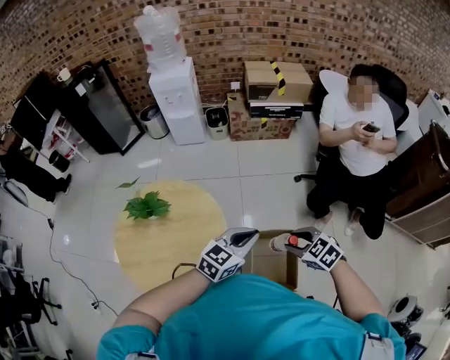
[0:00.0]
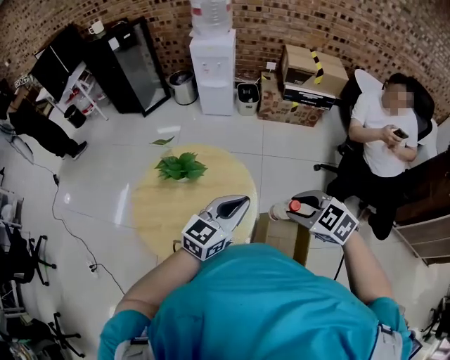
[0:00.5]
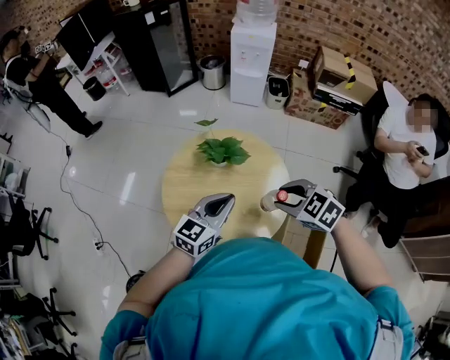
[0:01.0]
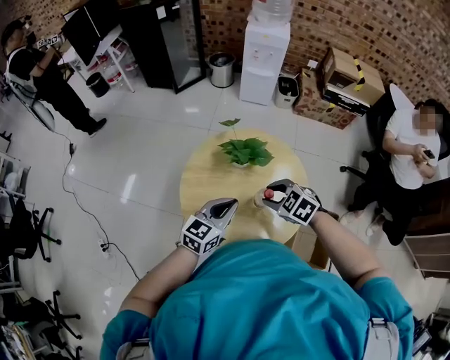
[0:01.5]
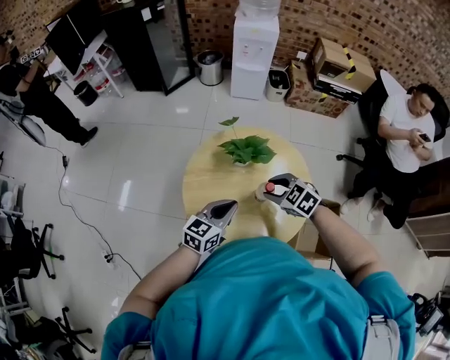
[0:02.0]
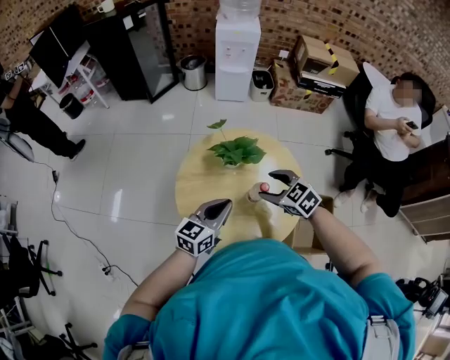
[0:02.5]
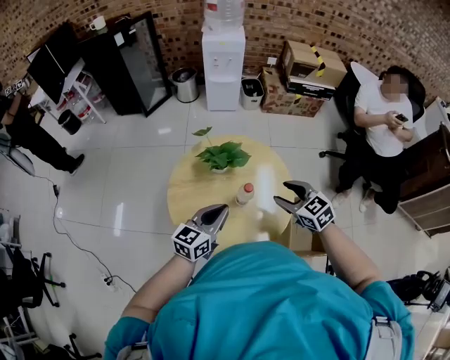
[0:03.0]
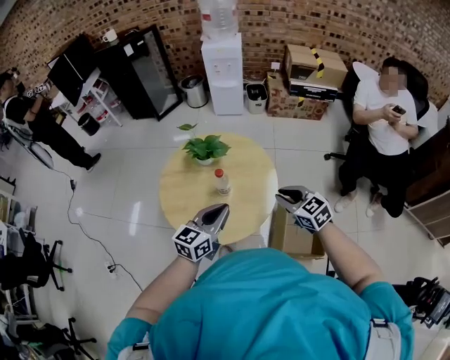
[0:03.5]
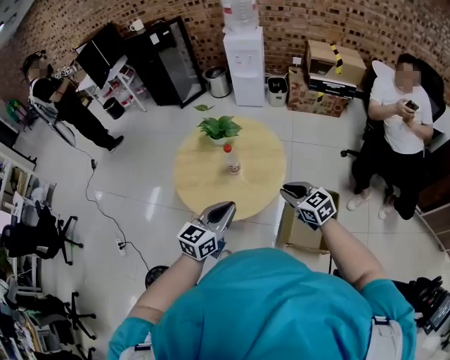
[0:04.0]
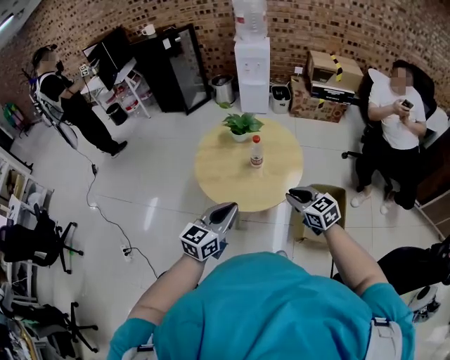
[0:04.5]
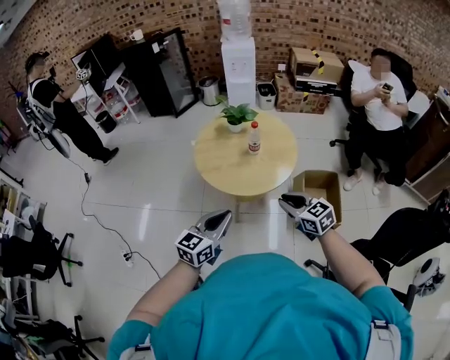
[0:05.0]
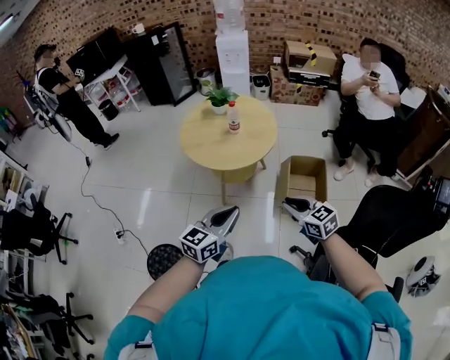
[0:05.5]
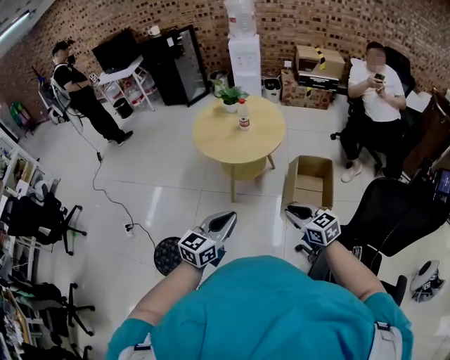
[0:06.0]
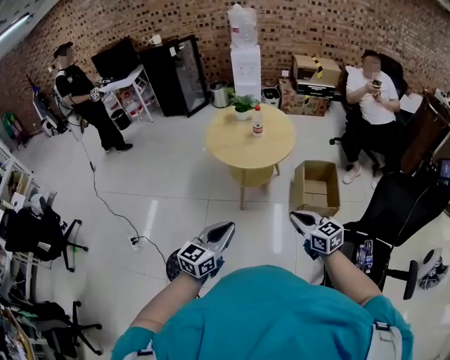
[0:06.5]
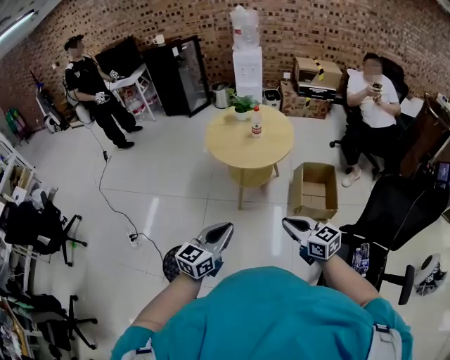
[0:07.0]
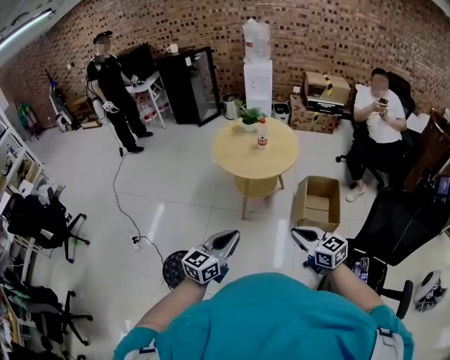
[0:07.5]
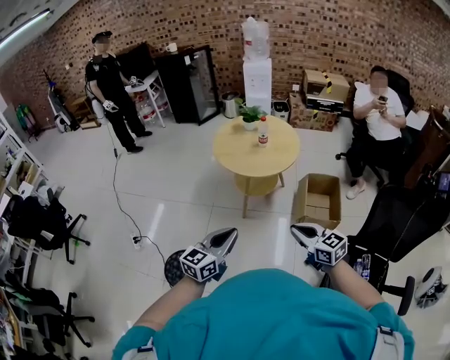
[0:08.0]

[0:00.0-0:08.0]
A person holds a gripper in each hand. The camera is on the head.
0:00.0 to 0:02.0: Both grippers are carried to the left, about 60 cm. The left gripper swivels roughly 20 degrees.
0:02.0 to 0:04.0: The right gripper heads to the right and backward, covering about 40 cm, rotates some 30 degrees, and closes. Meanwhile the left gripper goes about 40 cm backward and to the right.
0:04.0 to 0:06.0: The two grippers travel together, backward, about 60 cm.
0:06.0 to 0:08.0: The right gripper is displaced to the left, backward and upward by some 15 cm; the left gripper moves to the left and backward, some 15 cm.

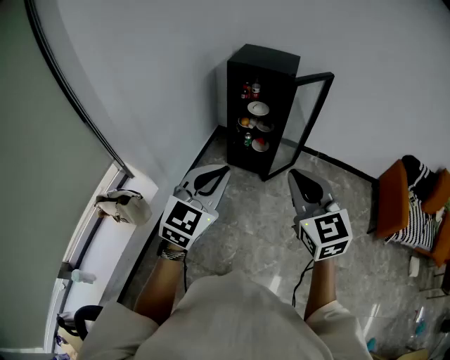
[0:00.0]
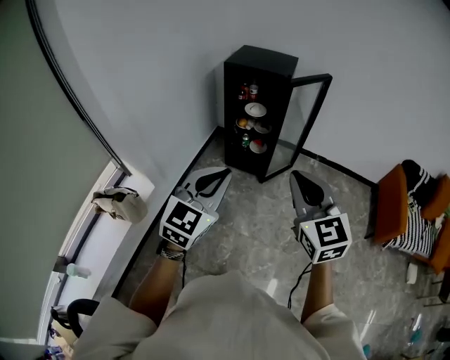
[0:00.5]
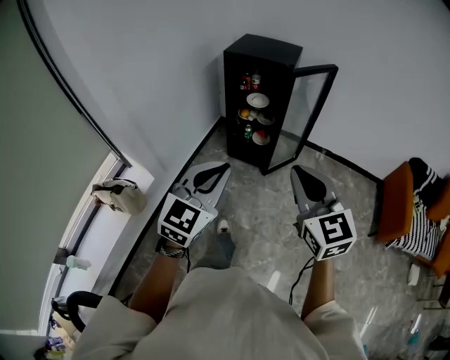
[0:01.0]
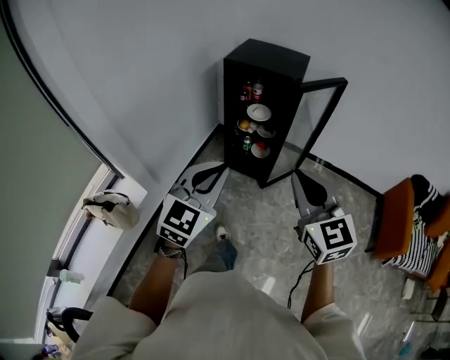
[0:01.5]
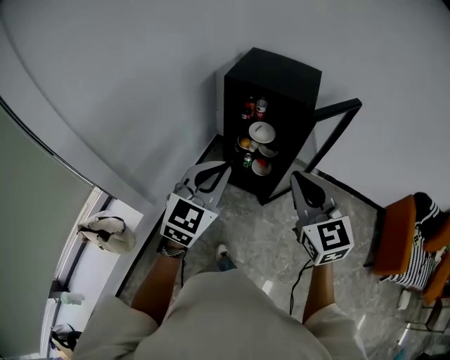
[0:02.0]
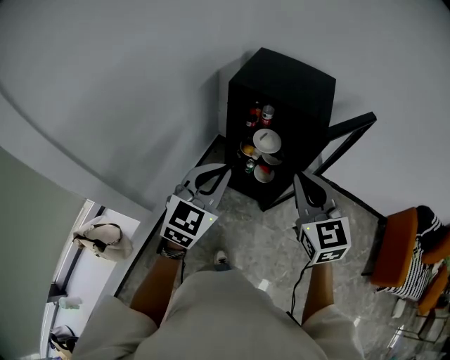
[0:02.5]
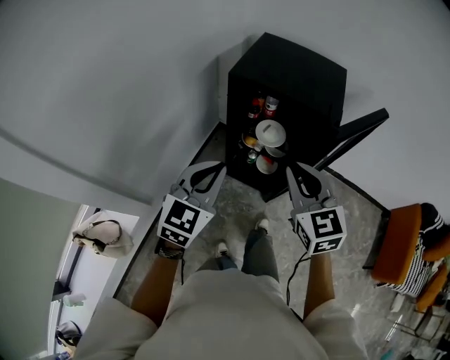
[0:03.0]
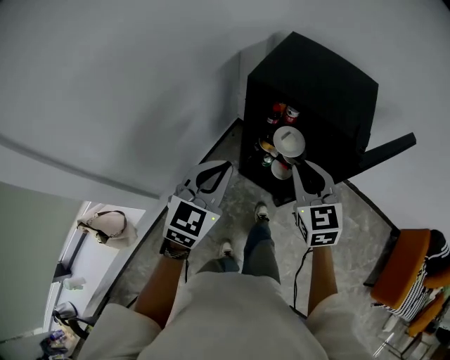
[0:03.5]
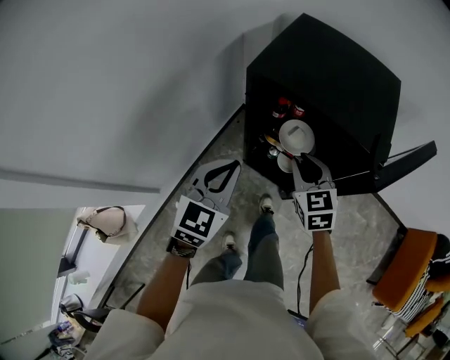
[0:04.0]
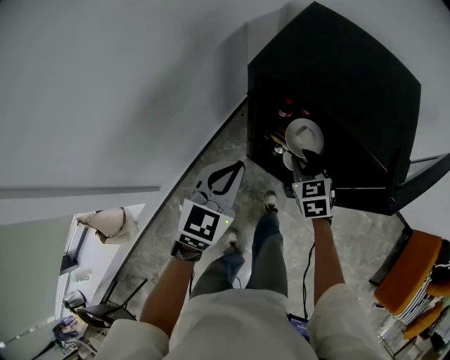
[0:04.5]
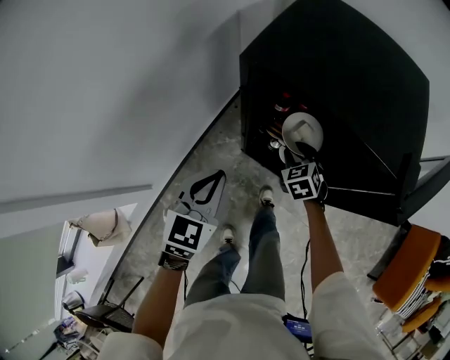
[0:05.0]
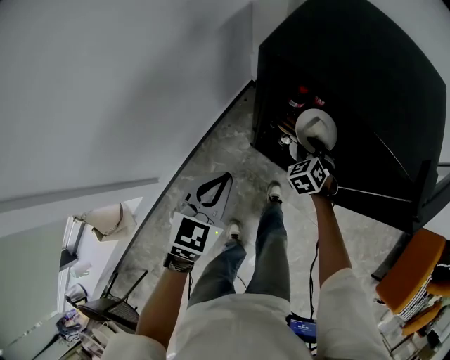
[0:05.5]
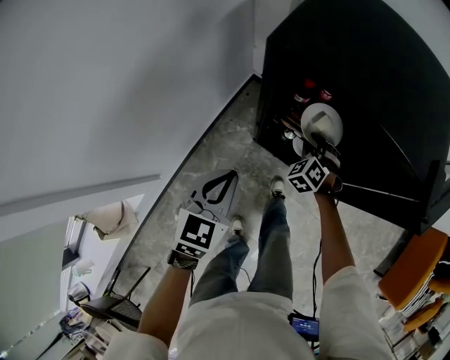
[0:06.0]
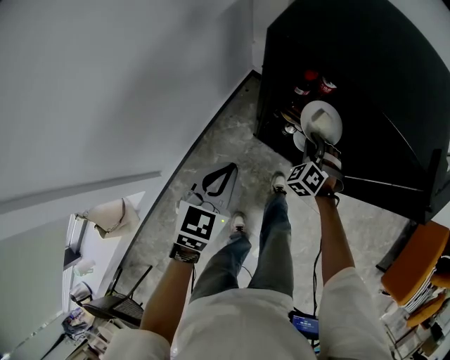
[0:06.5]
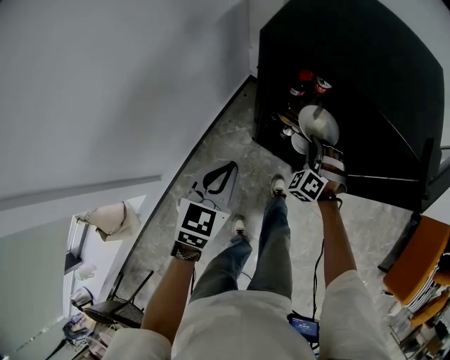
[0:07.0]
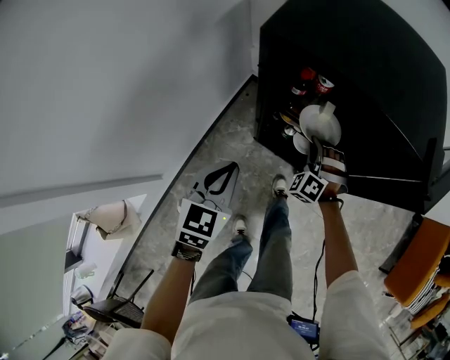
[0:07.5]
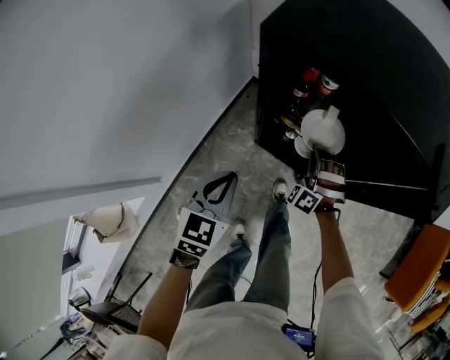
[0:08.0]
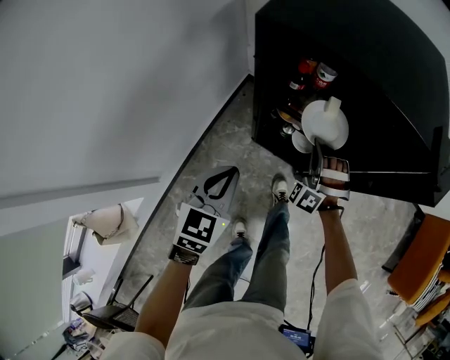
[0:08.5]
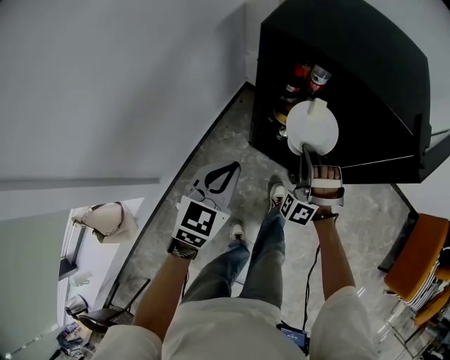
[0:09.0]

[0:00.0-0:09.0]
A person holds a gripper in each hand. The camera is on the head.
0:00.0 to 0:02.0: The two grippers go about 30 cm forward.
0:02.0 to 0:04.5: Both grippers travel together forward and downward, approximately 40 cm. The left gripper changes its angle by approximately 20 degrees; the right gripper rotates about 30 degrees, and opens up.
0:04.5 to 0:07.0: The grippers both shift downward by roughly 10 cm. The right gripper rotates around the line of its fingers by some 50 degrees, counterclockwise from behind, and closes.
0:07.0 to 0:09.0: The right gripper goes some 10 cm upward and backward, and rotates approximately 30 degrees.

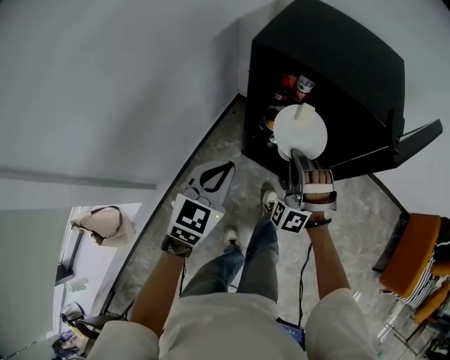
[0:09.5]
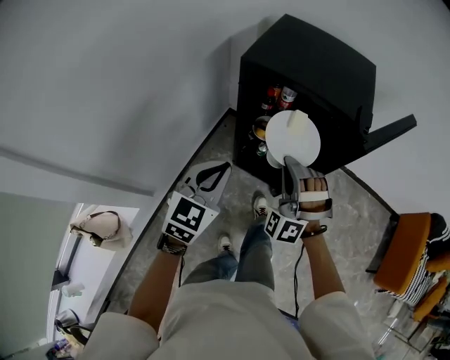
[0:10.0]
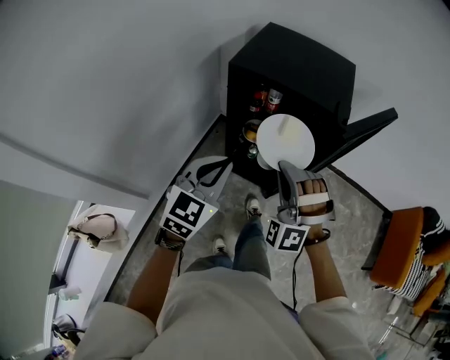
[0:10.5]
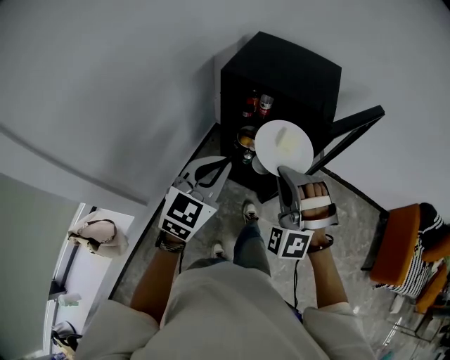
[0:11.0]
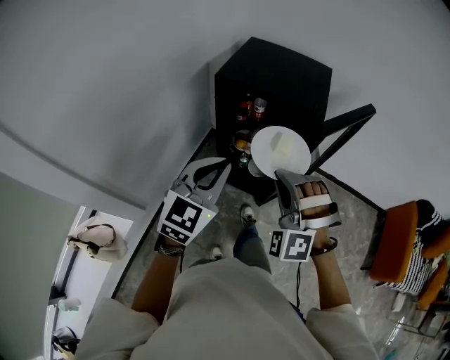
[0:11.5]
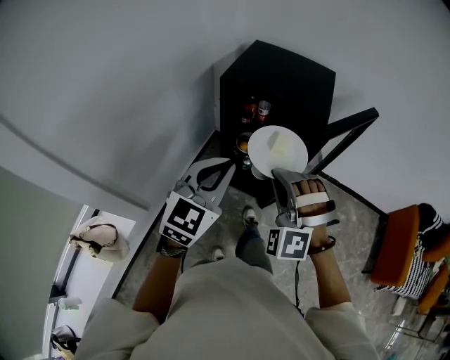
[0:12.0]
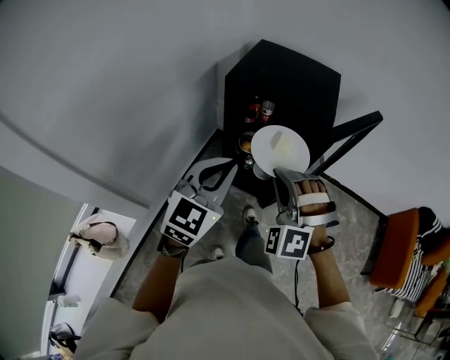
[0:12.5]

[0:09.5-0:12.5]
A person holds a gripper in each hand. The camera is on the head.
0:09.5 to 0:11.0: The right gripper is displaced upward and backward by about 25 cm. Meanwhile the left gripper shifts some 20 cm upward, to the right and backward.
0:11.0 to 0:12.5: There are only small adjustments of the grippers.

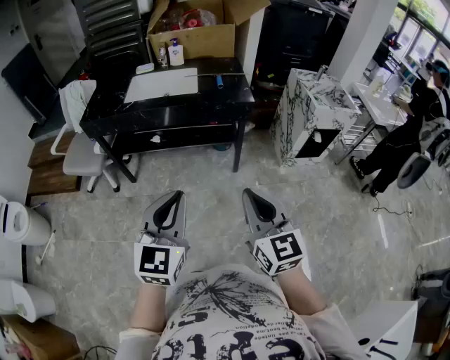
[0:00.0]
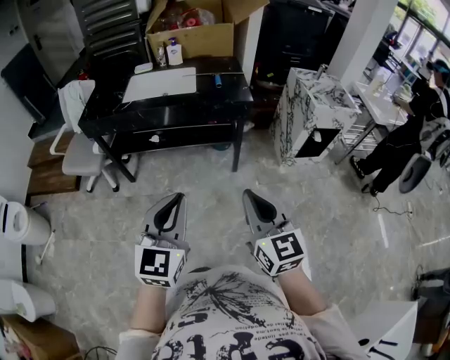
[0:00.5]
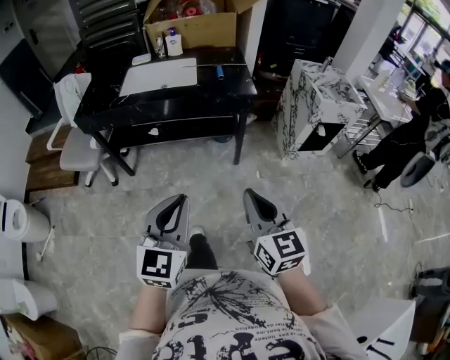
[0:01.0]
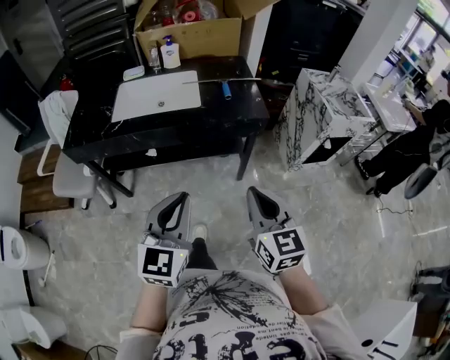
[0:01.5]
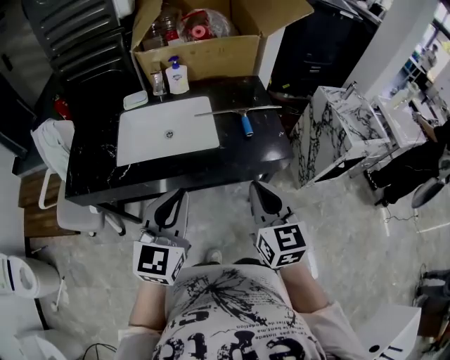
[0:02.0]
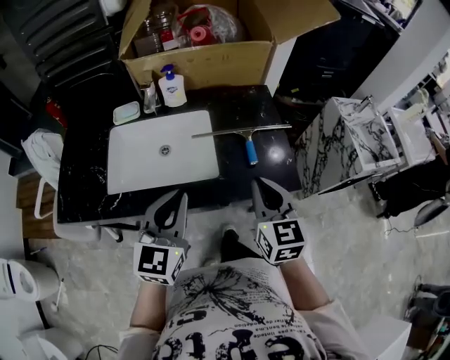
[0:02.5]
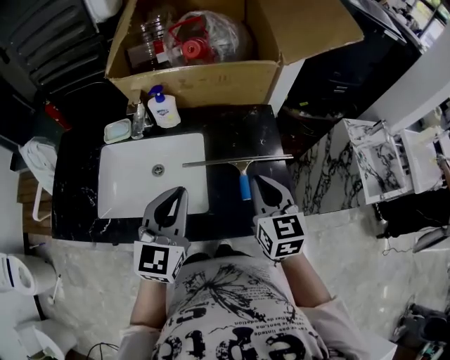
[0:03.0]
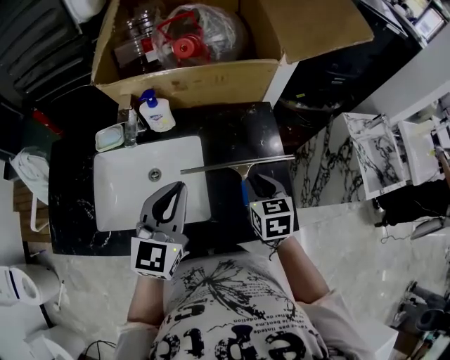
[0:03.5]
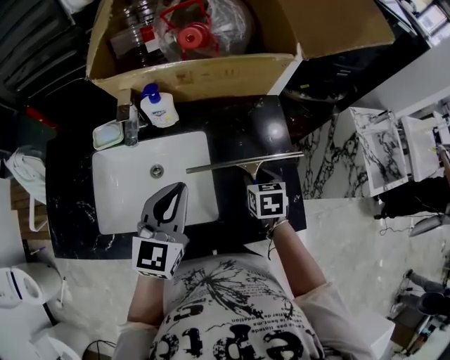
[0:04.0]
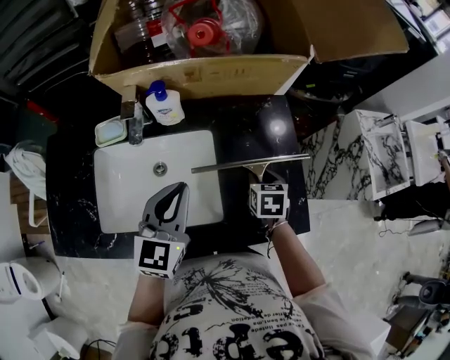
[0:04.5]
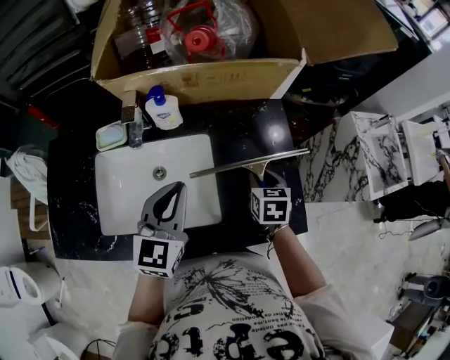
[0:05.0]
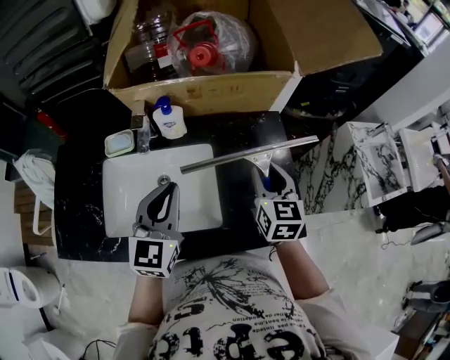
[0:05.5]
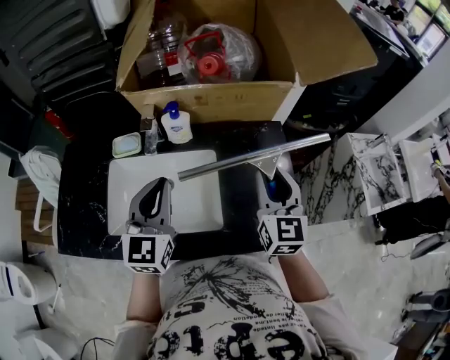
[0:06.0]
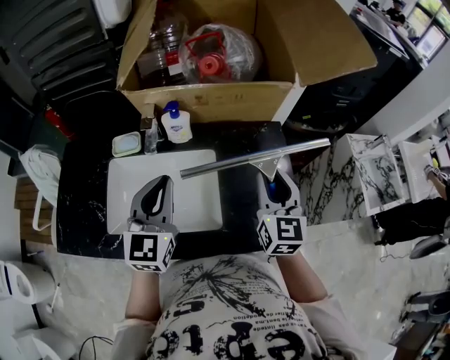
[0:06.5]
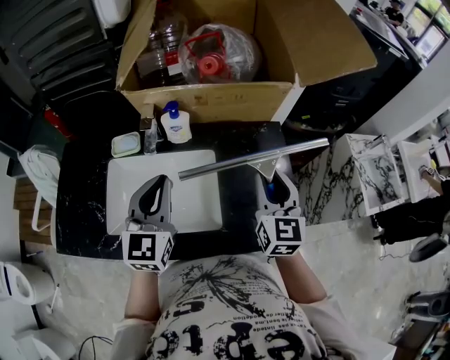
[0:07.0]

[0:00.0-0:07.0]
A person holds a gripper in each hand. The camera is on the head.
0:00.0 to 0:02.0: Both grippers are carried forward, roughly 40 cm.
0:02.0 to 0:03.5: The left gripper moves forward, about 30 cm. Meanwhile the right gripper moves forward and downward, roughly 35 cm, and rotates roughly 30 degrees.
0:03.5 to 0:05.0: The left gripper moves approximately 5 cm; the right gripper shifts some 5 cm downward.
0:05.0 to 0:07.0: The left gripper is displaced upward and to the left by about 10 cm. Meanwhile the right gripper is displaced upward by some 20 cm, and points its fingers about 40 degrees further upward.
